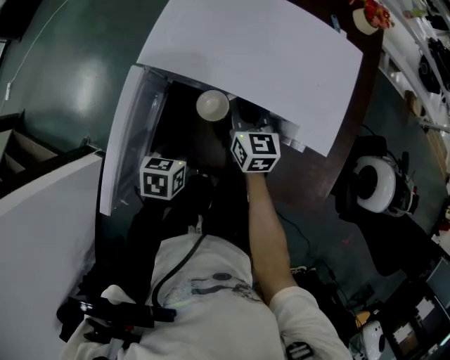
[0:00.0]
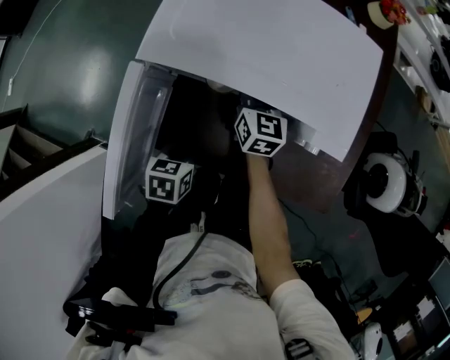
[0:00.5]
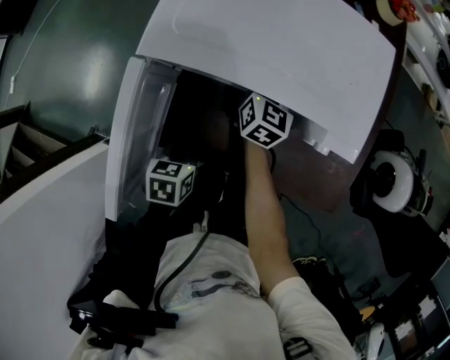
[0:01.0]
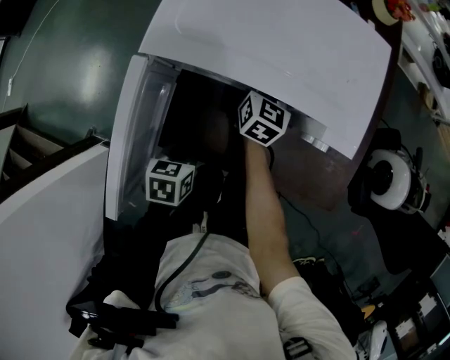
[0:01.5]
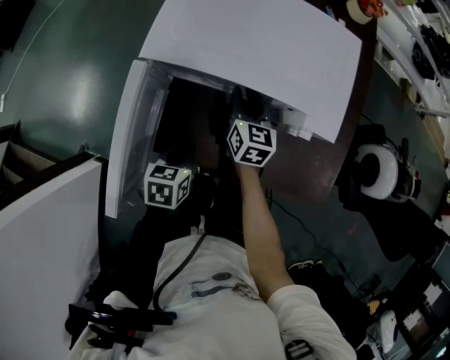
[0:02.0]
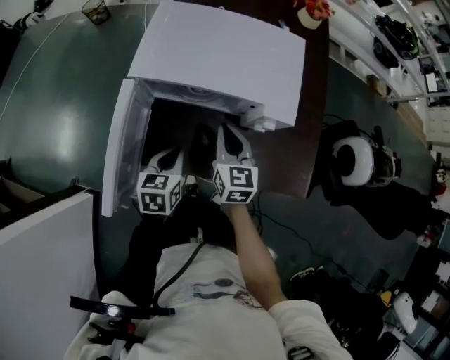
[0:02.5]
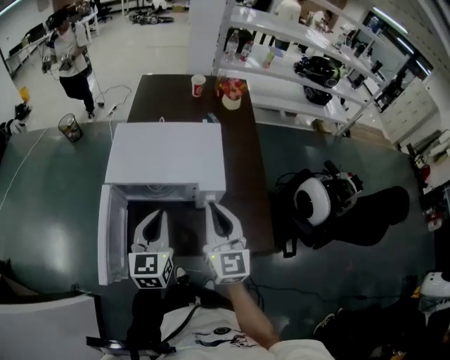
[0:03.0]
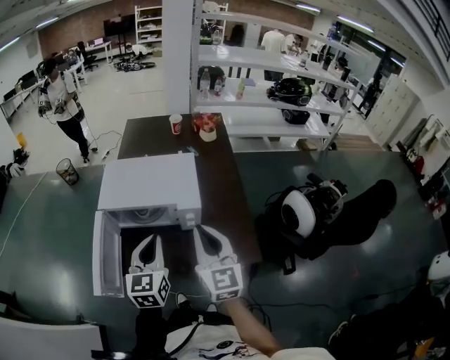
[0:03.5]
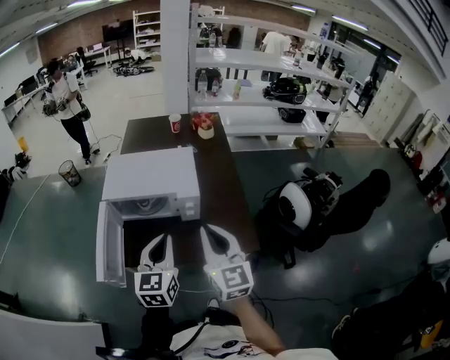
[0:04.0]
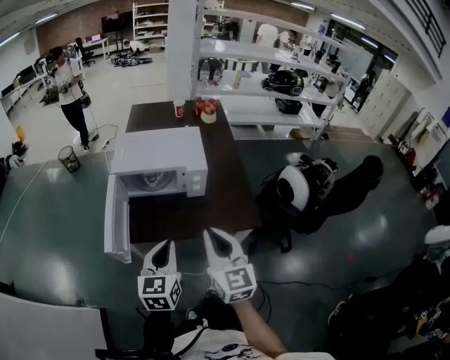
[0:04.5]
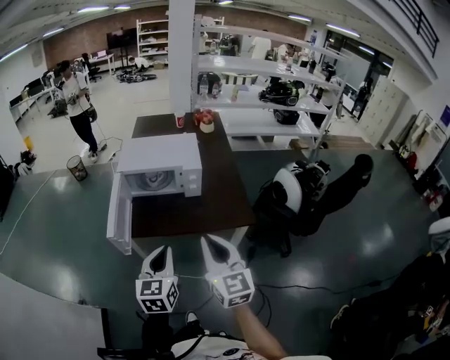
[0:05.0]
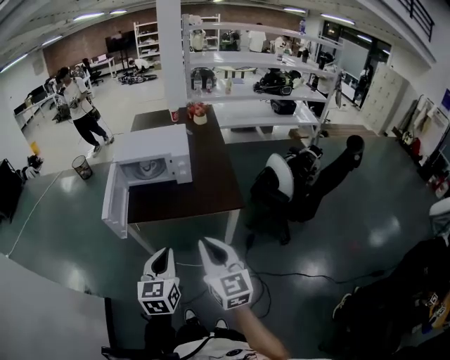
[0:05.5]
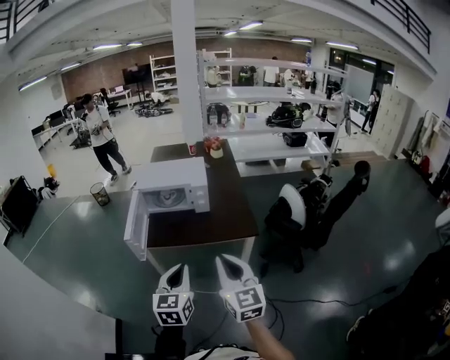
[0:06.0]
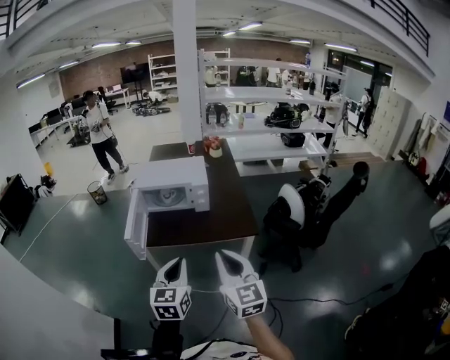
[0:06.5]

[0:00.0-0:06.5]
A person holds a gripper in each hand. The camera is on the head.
0:02.0 to 0:04.5: The left gripper is displaced upward and backward by some 30 cm, and angles its fingers upward, by some 40 degrees, while the right gripper shifts about 40 cm backward and upward, rotates roughly 30 degrees, and closes.
0:04.5 to 0:06.5: Both grippers travel together backward, some 20 cm.

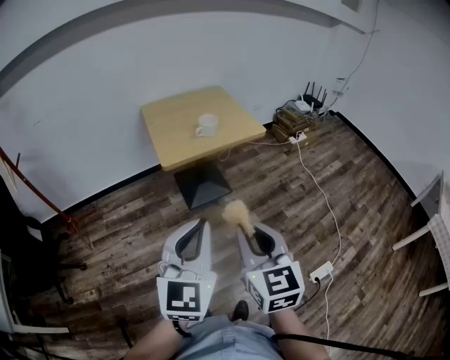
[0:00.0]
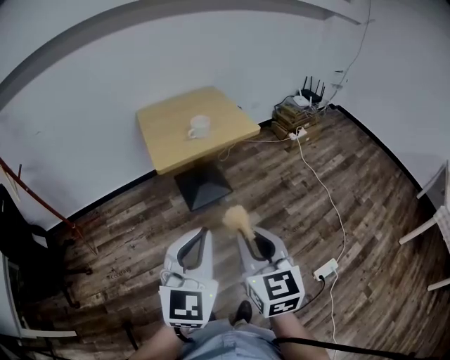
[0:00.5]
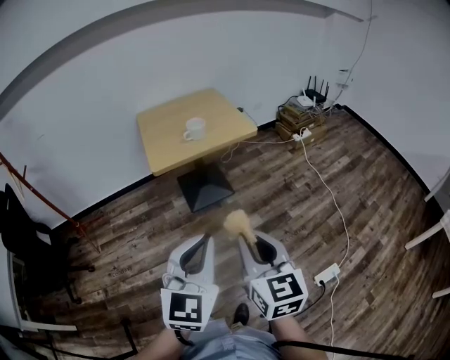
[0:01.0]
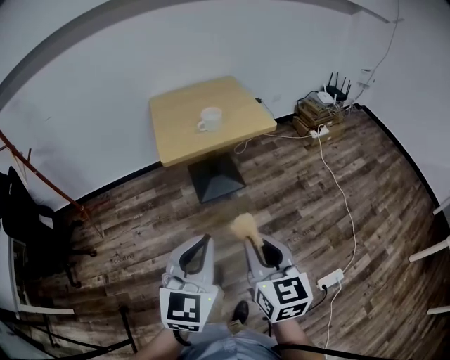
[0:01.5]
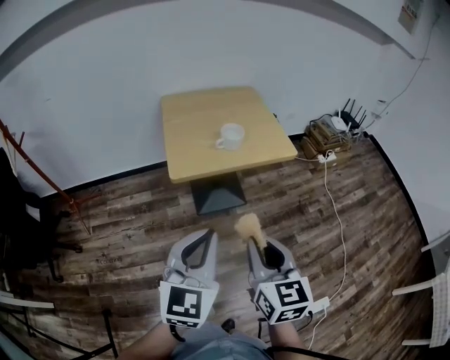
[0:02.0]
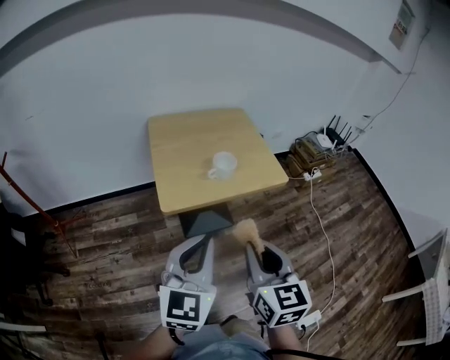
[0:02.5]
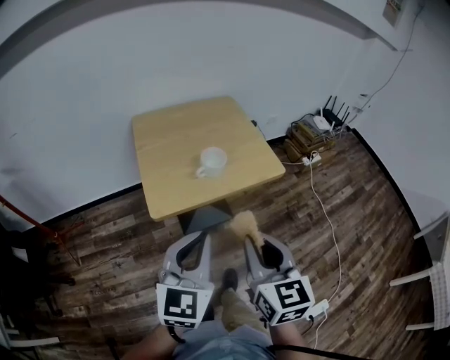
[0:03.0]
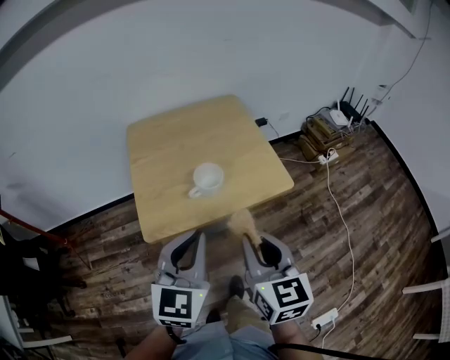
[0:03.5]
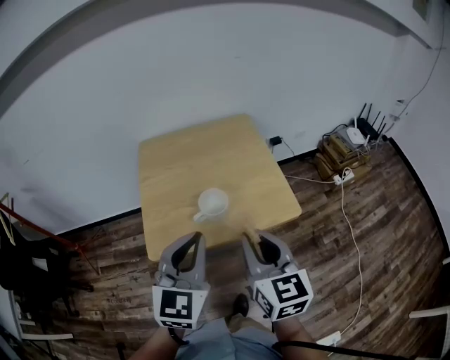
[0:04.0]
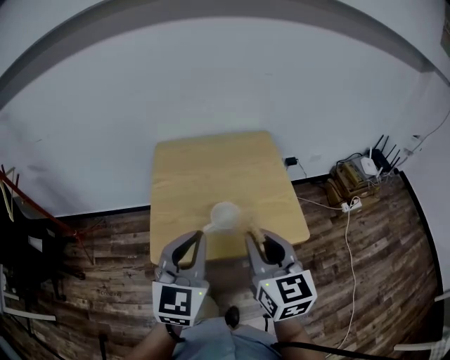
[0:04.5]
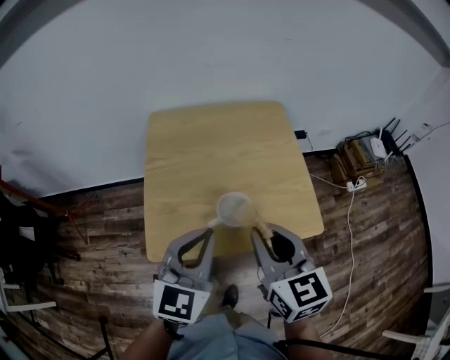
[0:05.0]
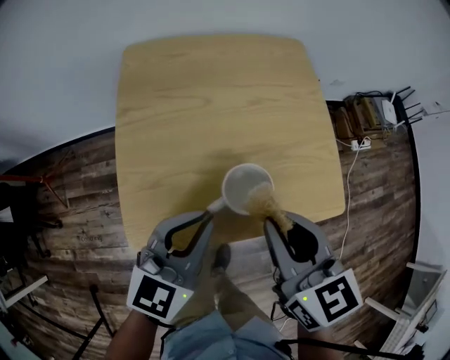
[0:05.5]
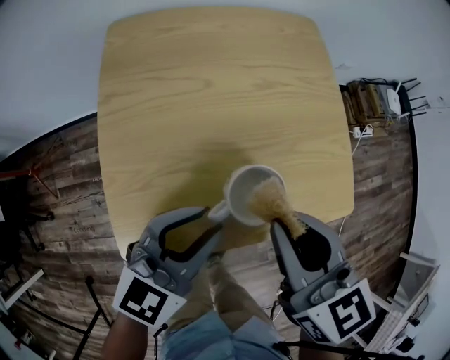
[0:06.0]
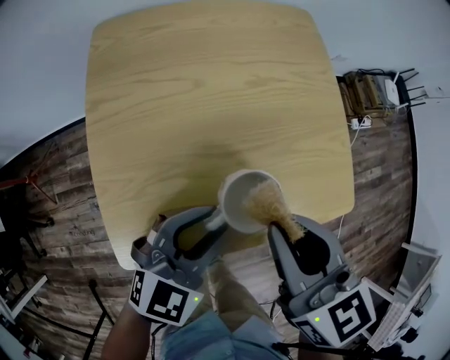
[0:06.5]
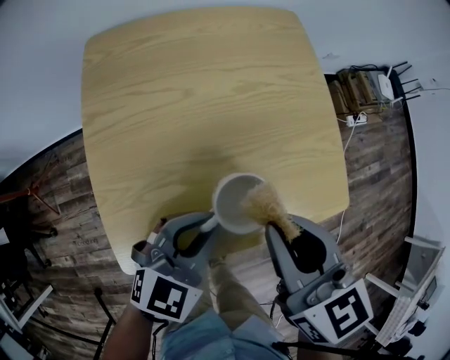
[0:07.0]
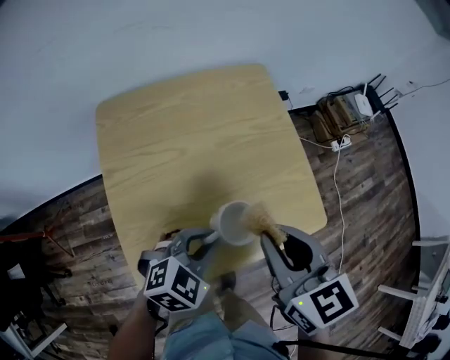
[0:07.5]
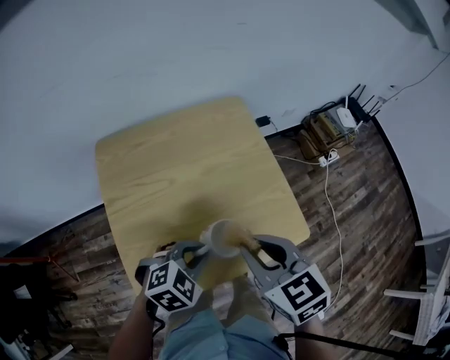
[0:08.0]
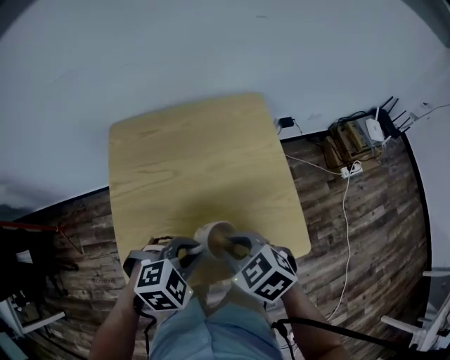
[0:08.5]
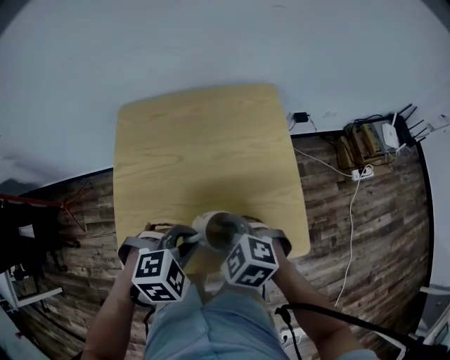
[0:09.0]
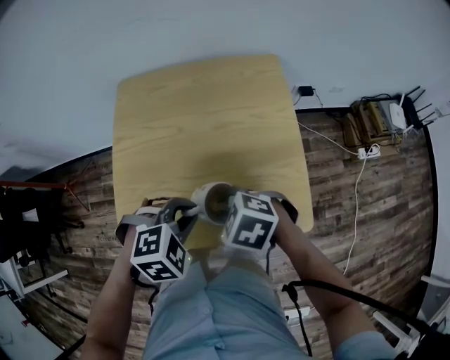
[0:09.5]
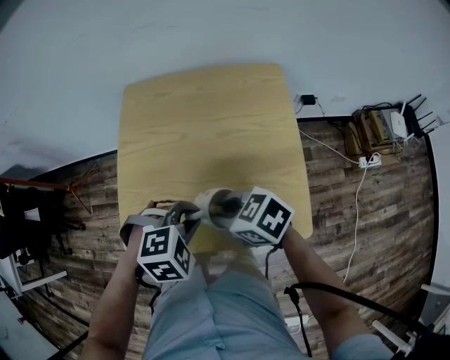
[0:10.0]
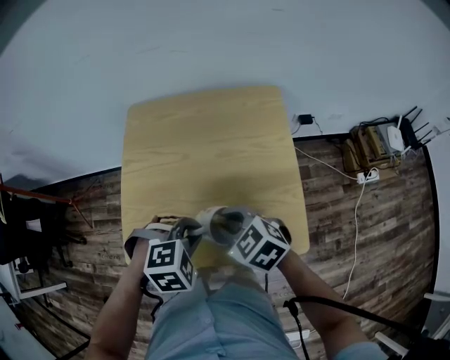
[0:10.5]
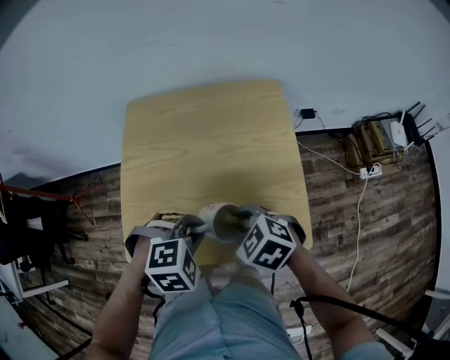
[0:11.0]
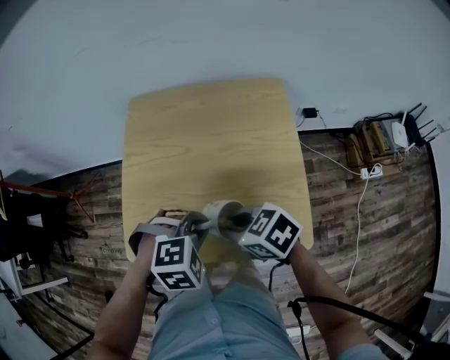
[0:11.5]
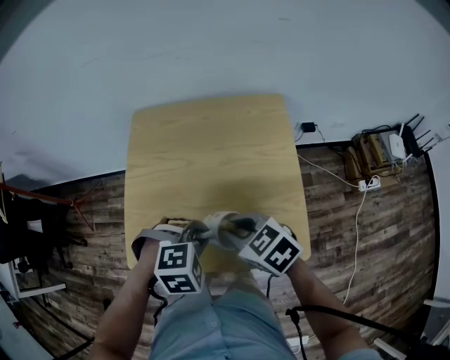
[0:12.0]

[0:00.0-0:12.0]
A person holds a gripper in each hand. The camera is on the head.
0:00.0 to 0:02.0: Both grippers travel together forward, approximately 15 cm.
0:02.0 to 0:04.0: Both grippers move forward, approximately 30 cm.
0:04.0 to 0:06.0: The right gripper moves forward, downward and to the left, approximately 20 cm, and turns by about 20 degrees, while the left gripper goes approximately 20 cm downward and forward, rotates some 30 degrees, and opens up.
0:06.0 to 0:08.0: The right gripper moves about 5 cm. The left gripper moves about 5 cm, and angles its fingers downward, by roughly 40 degrees.
0:08.0 to 0:10.0: The left gripper changes its angle by about 20 degrees. Meanwhile the right gripper goes roughly 10 cm downward, and turns by some 50 degrees.

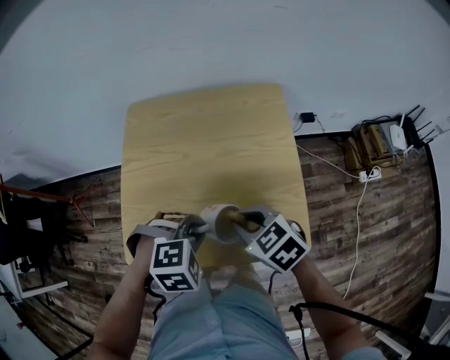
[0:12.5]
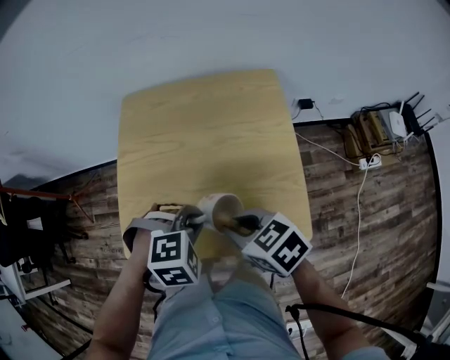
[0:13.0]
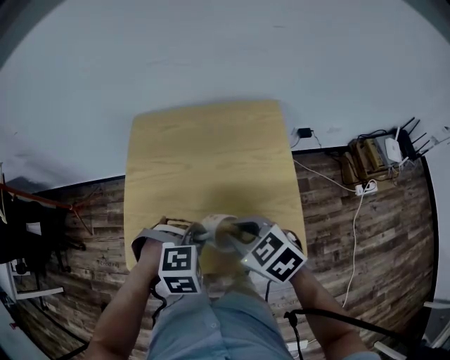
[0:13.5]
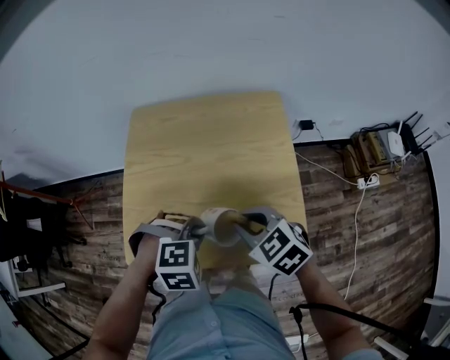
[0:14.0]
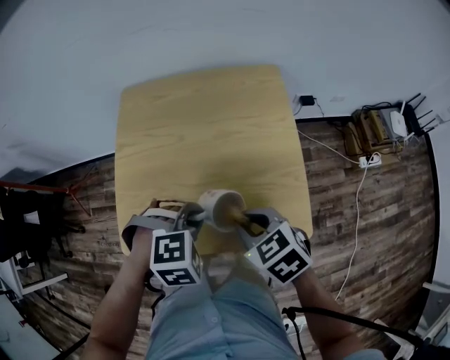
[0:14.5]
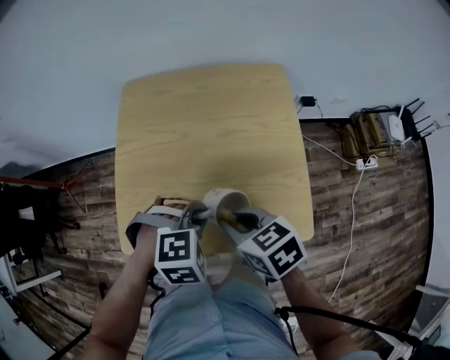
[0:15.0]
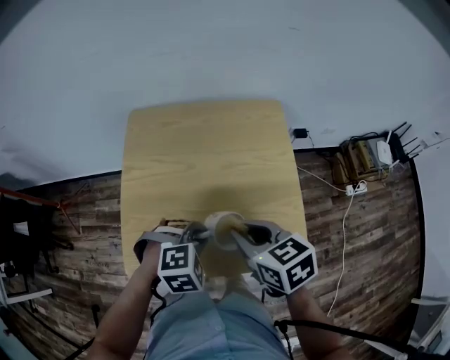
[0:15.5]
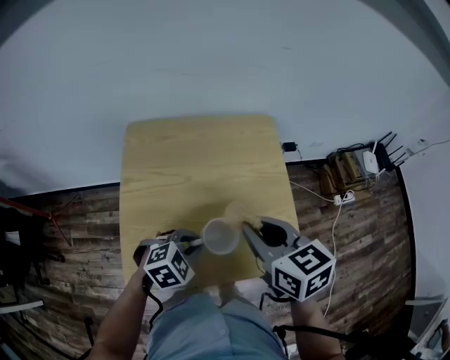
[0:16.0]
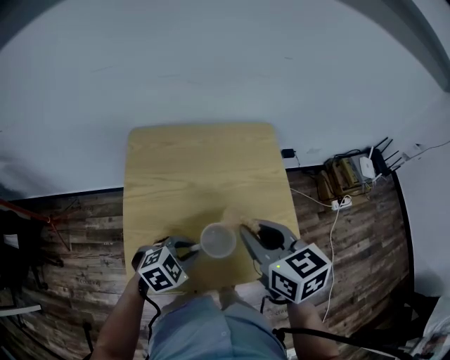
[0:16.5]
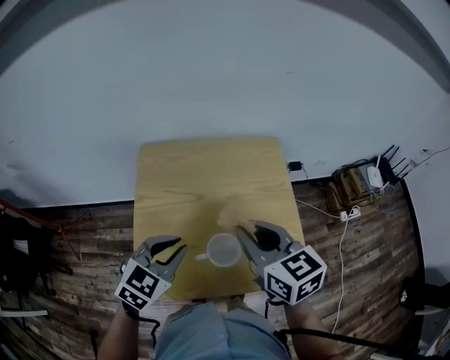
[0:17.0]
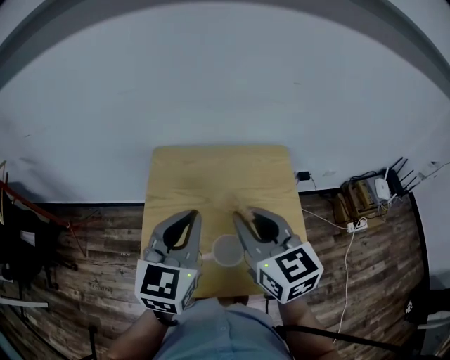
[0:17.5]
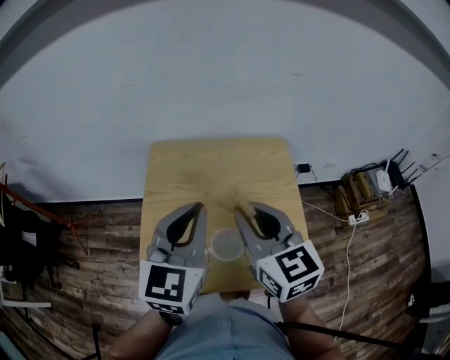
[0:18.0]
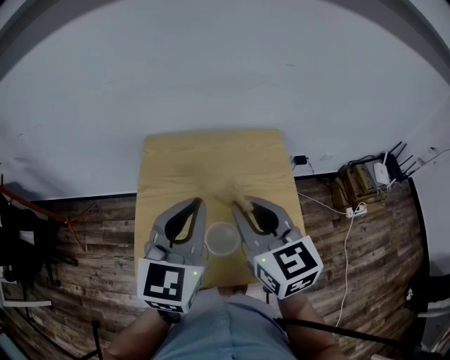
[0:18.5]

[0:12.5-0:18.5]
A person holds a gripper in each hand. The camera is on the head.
0:12.5 to 0:14.5: The grippers stay close to where they were, moving slightly.
0:14.5 to 0:16.5: The left gripper ends up roughly 10 cm from where it was, and turns by some 30 degrees, while the right gripper shifts about 15 cm upward, and rotates some 30 degrees.
0:16.5 to 0:18.5: The left gripper travels upward by about 30 cm, and tilts its fingers about 40 degrees upward. The right gripper heads upward, covering some 5 cm.

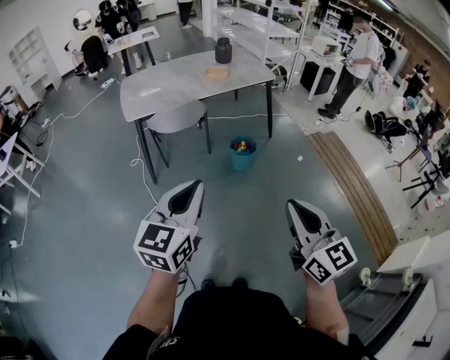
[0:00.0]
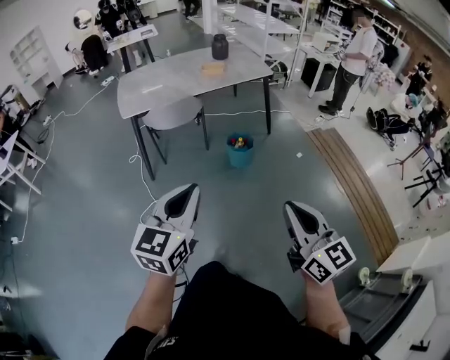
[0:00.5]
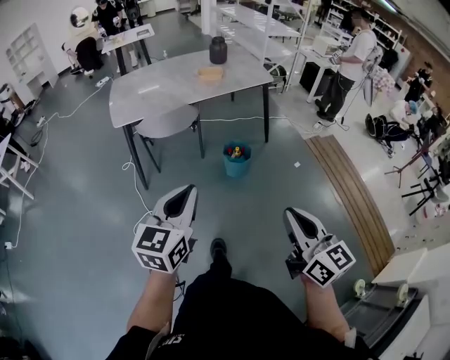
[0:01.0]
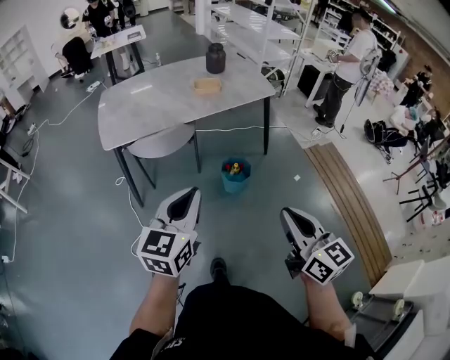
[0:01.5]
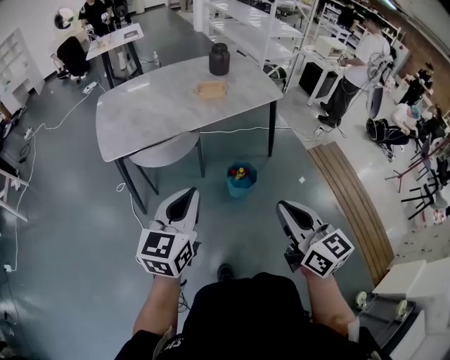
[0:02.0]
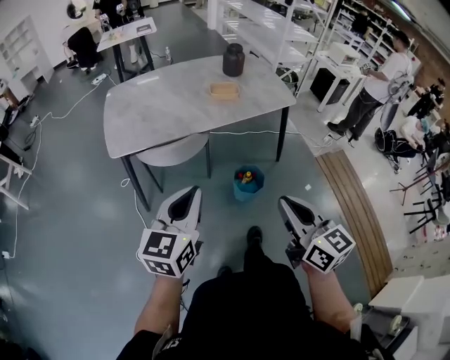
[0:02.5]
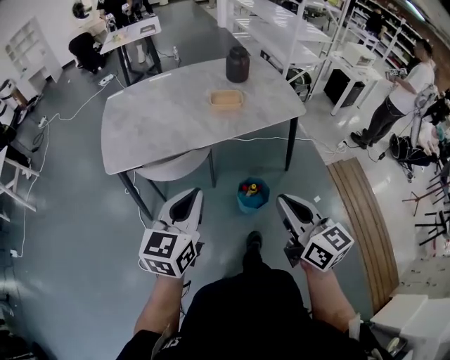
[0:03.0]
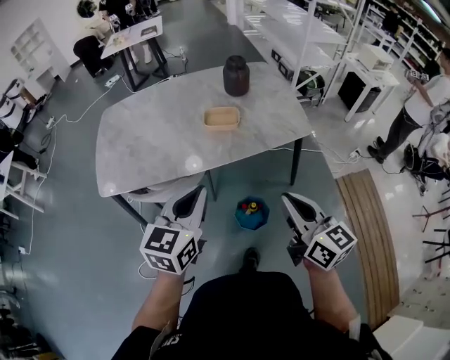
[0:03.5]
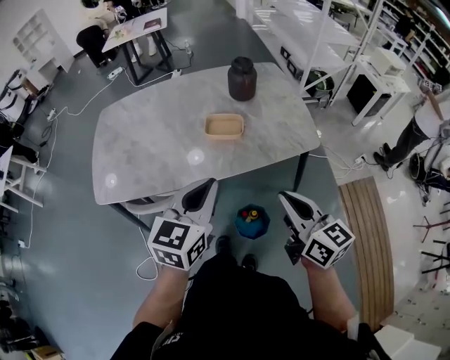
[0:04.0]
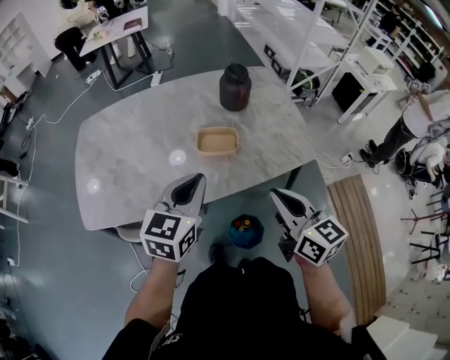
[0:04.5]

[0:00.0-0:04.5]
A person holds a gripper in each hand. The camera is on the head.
0:00.0 to 0:02.0: Both grippers move forward, roughly 35 cm.
0:02.0 to 0:04.5: Both grippers are carried forward, about 50 cm.
